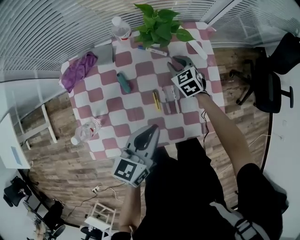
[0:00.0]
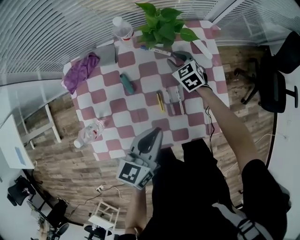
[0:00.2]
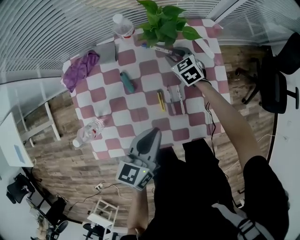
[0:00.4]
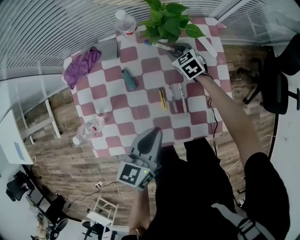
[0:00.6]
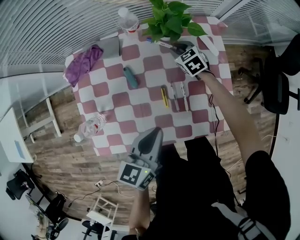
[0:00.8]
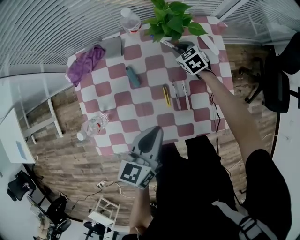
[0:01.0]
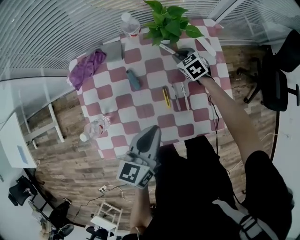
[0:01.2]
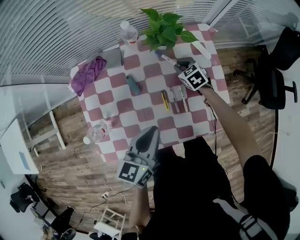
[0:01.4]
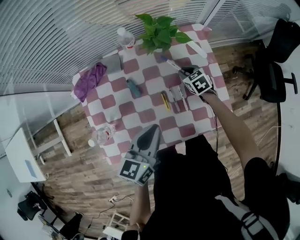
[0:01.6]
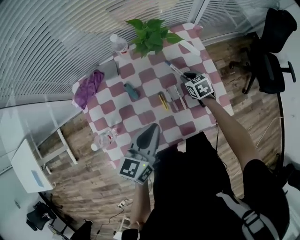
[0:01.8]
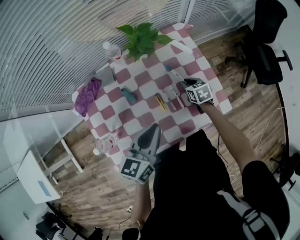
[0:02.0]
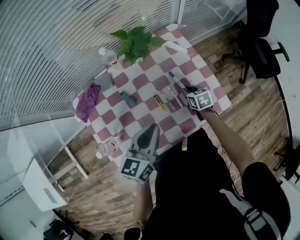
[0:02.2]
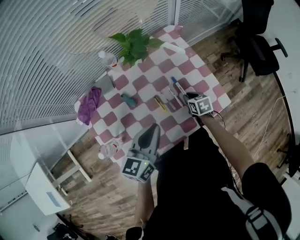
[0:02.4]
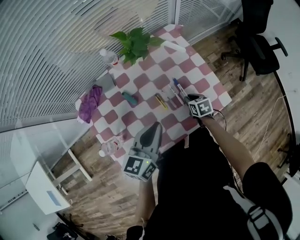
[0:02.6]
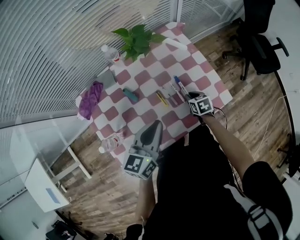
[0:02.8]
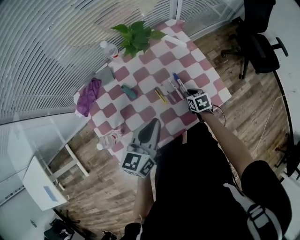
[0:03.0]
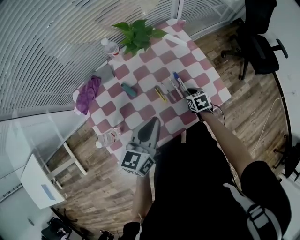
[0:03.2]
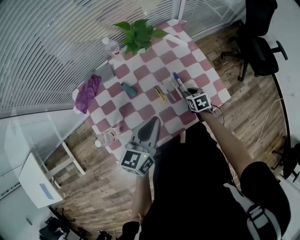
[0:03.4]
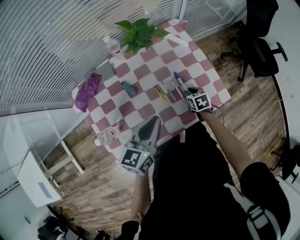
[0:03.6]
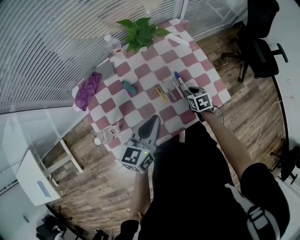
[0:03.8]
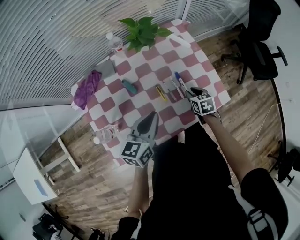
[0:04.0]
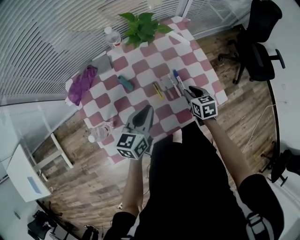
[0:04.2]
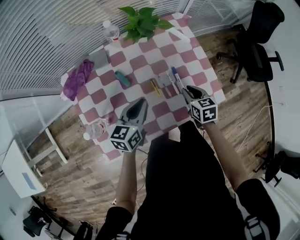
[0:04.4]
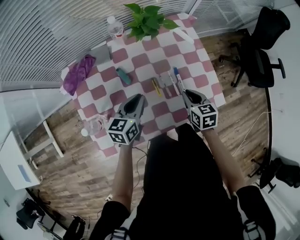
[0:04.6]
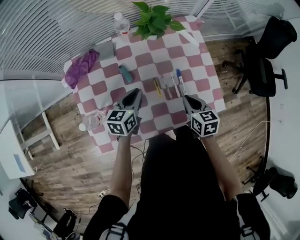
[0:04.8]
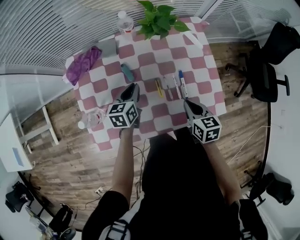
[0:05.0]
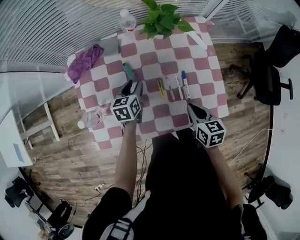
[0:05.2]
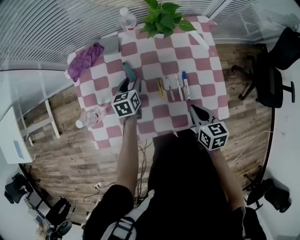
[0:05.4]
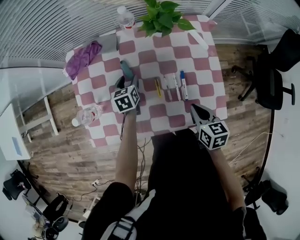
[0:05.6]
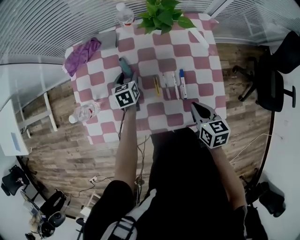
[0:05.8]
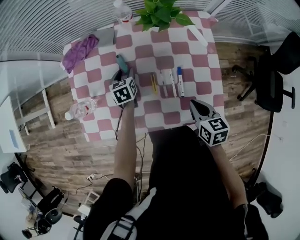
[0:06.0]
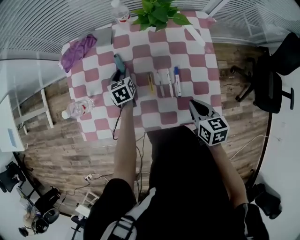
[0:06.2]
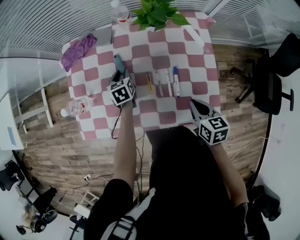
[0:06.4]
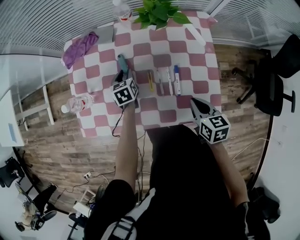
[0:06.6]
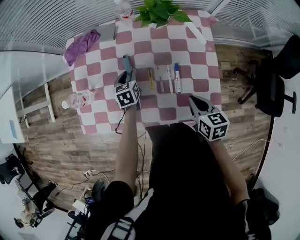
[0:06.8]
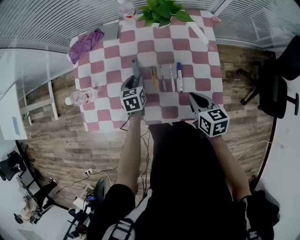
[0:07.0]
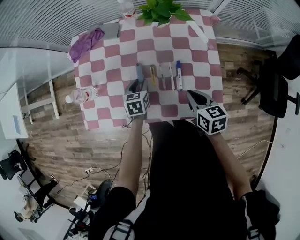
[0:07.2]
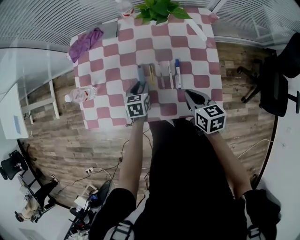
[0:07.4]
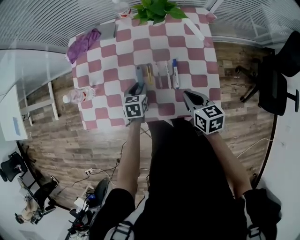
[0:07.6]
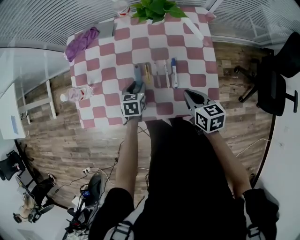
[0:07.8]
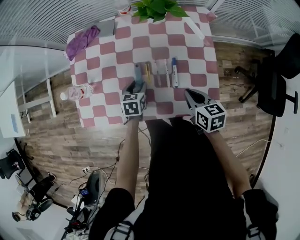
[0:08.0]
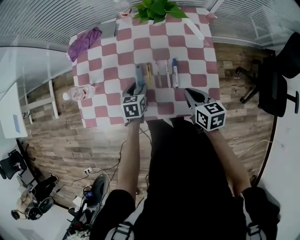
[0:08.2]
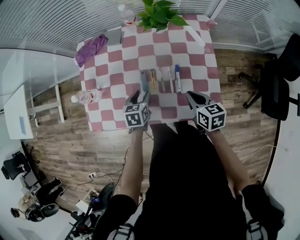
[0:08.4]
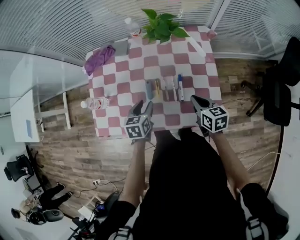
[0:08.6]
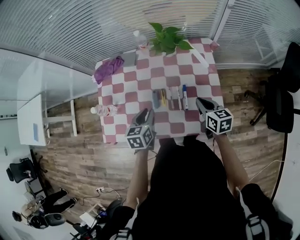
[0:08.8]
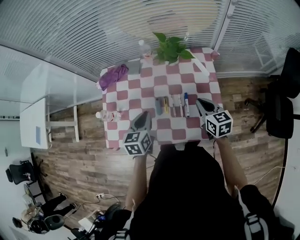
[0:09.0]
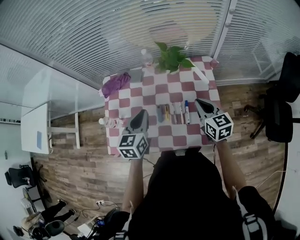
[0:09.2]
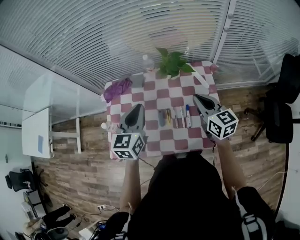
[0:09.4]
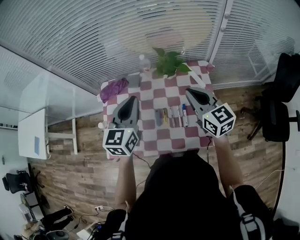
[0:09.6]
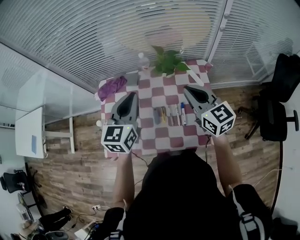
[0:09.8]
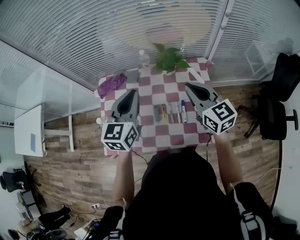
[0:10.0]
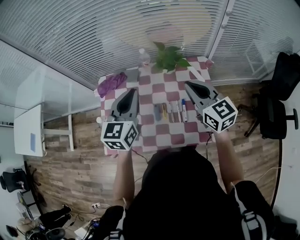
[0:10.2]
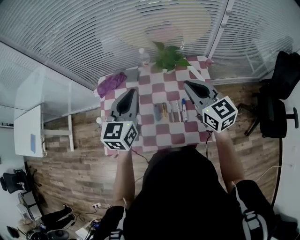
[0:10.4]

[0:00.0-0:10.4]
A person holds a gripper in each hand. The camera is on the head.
0:01.4 to 0:03.0: The right gripper heads backward and to the right, covering approximately 20 cm, and swivels roughly 40 degrees.
0:03.0 to 0:04.4: The left gripper shifts about 10 cm downward. The right gripper is displaced upward by some 10 cm.
0:04.4 to 0:06.0: The left gripper heads downward, covering some 15 cm, turns by roughly 50 degrees, and opens its fingers.
0:06.0 to 0:07.4: The left gripper moves backward, approximately 15 cm.
0:07.4 to 0:09.0: The right gripper heads upward and forward, covering about 10 cm. Meanwhile the left gripper shifts some 20 cm upward, and closes.
0:09.0 to 0:10.4: Both grippers move upward, about 20 cm. The left gripper swivels roughly 30 degrees. The right gripper changes its angle by about 20 degrees.

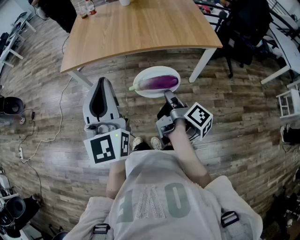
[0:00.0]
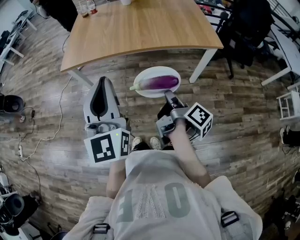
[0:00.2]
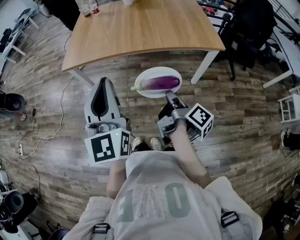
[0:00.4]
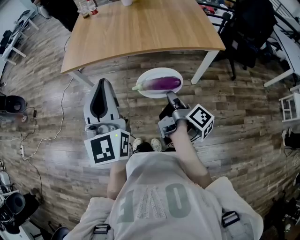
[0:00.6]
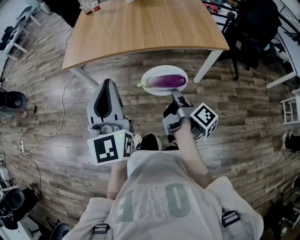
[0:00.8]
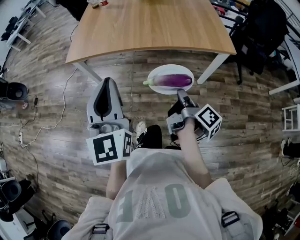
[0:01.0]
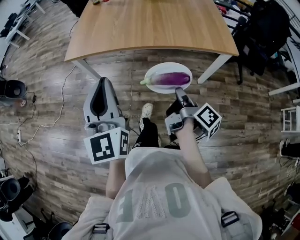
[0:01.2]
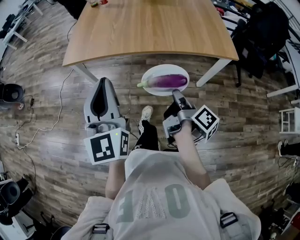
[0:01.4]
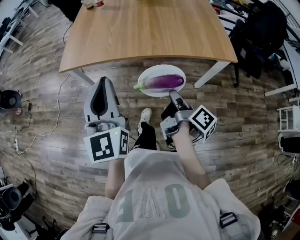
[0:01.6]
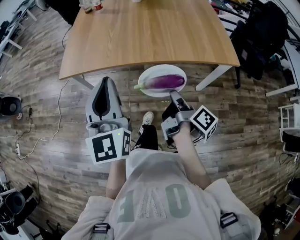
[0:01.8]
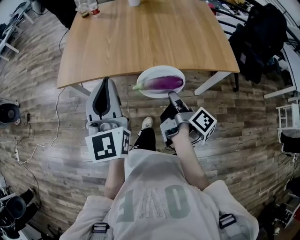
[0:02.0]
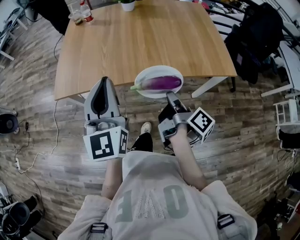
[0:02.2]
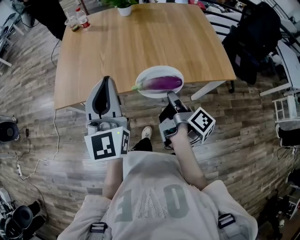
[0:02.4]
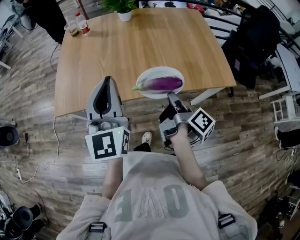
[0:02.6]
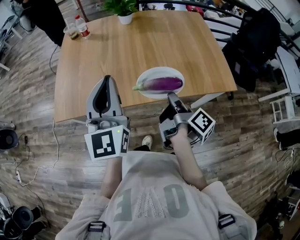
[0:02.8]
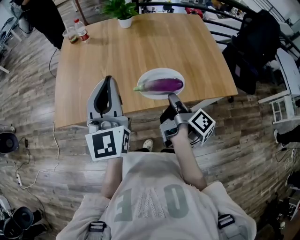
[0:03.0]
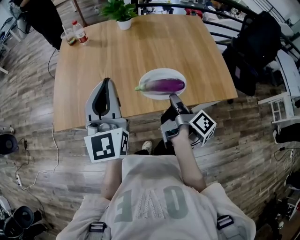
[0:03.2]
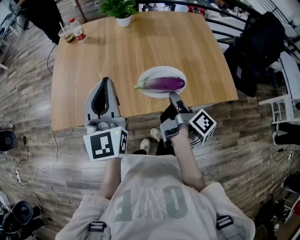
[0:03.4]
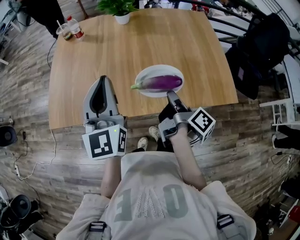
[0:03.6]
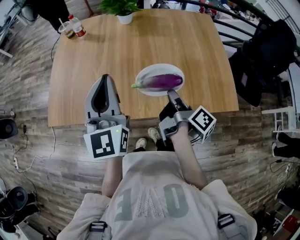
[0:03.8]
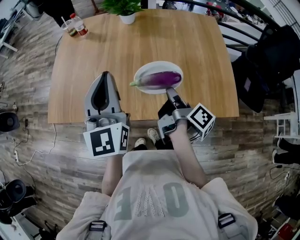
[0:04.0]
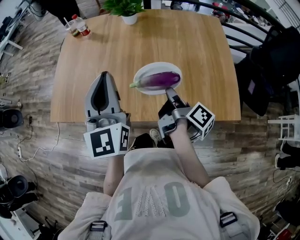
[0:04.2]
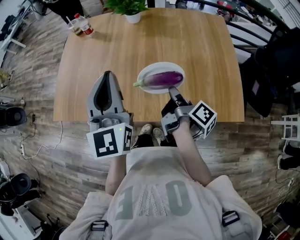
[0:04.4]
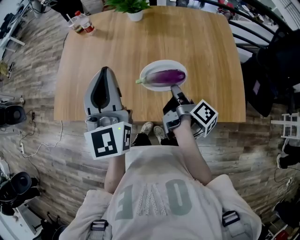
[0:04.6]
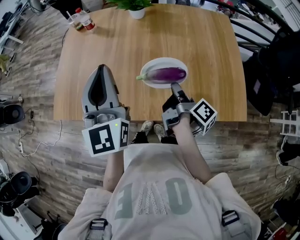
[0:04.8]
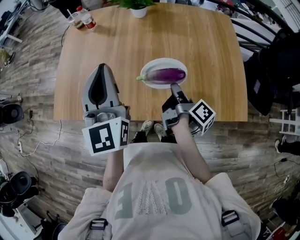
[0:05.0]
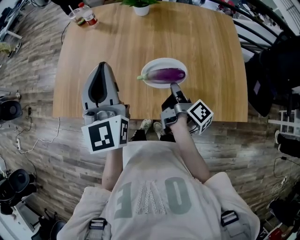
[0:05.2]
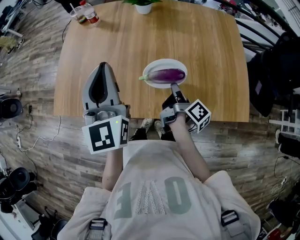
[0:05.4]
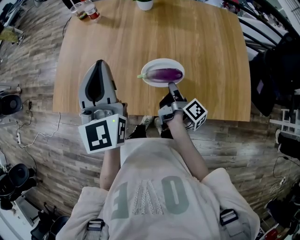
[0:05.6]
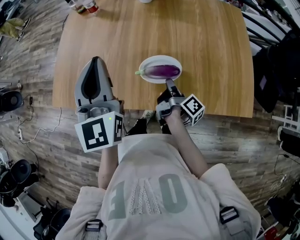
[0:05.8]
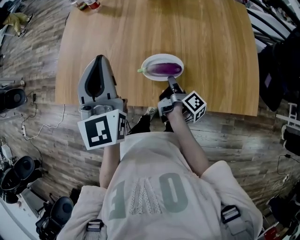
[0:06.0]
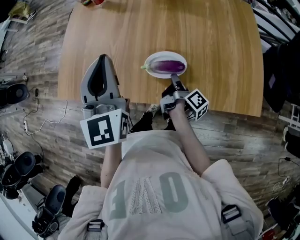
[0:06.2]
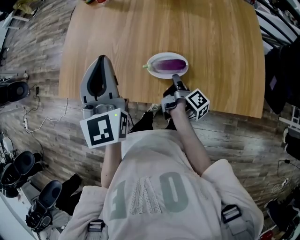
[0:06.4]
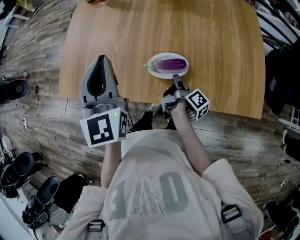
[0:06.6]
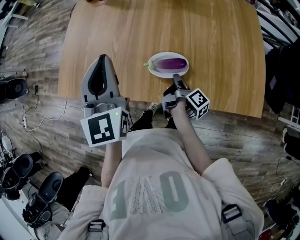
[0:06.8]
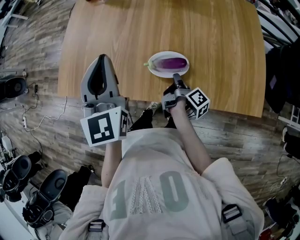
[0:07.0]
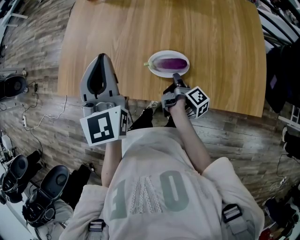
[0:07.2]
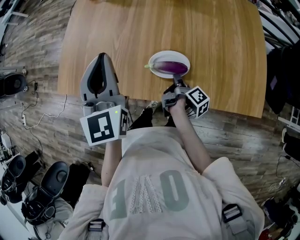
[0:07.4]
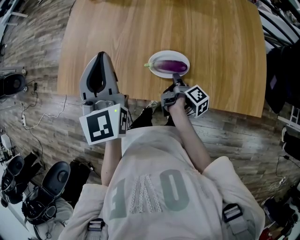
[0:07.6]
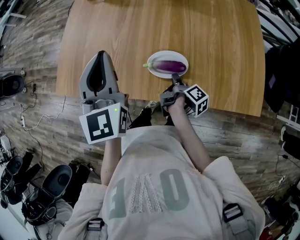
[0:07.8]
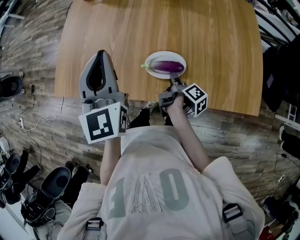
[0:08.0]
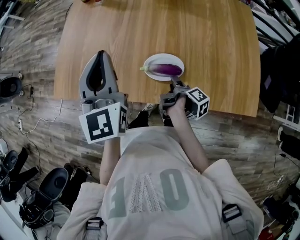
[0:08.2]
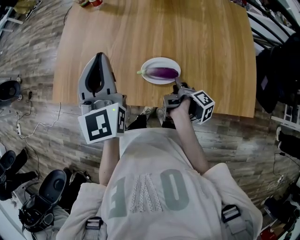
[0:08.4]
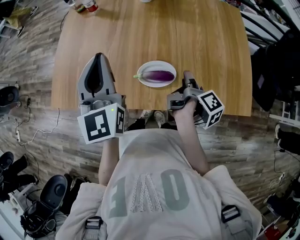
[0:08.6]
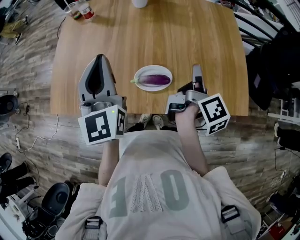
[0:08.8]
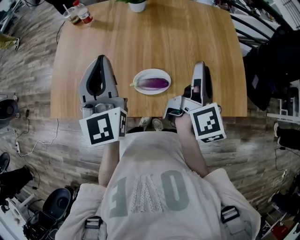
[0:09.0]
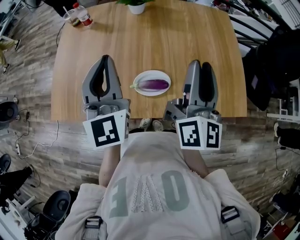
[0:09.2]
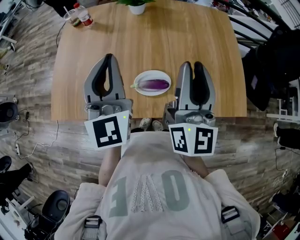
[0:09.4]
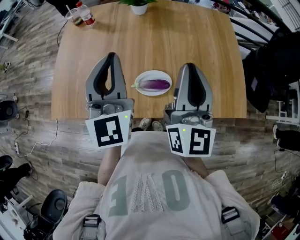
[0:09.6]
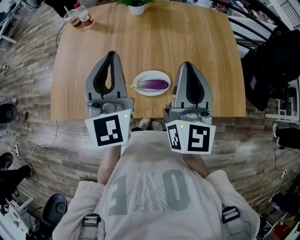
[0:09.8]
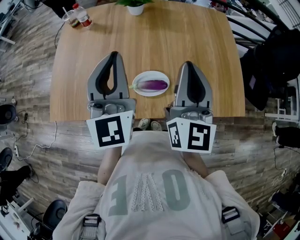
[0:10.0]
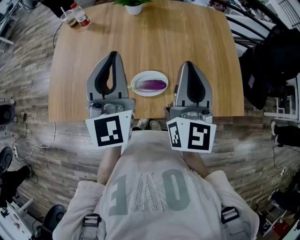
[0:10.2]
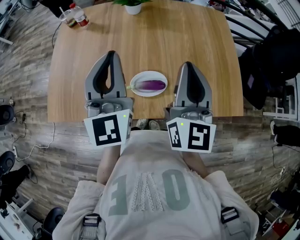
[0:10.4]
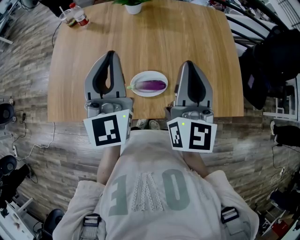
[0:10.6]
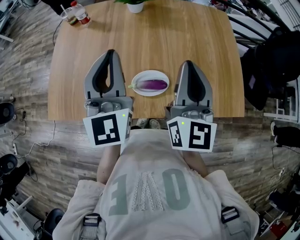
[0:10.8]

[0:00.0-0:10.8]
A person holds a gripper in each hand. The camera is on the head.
0:00.0 to 0:01.6: The left gripper changes place by roughly 10 cm.
0:01.6 to 0:03.0: The left gripper moves some 25 cm.
0:03.0 to 0:04.6: The left gripper ends up roughly 10 cm from where it was.
0:04.6 to 0:06.2: The left gripper changes place by some 10 cm.
0:07.8 to 0:09.2: The left gripper ends up some 5 cm from where it was.

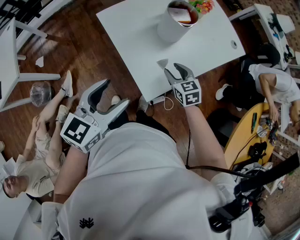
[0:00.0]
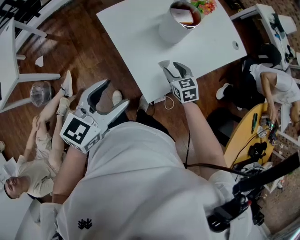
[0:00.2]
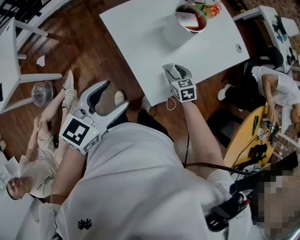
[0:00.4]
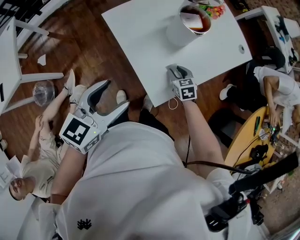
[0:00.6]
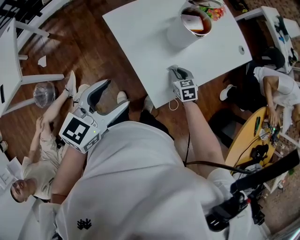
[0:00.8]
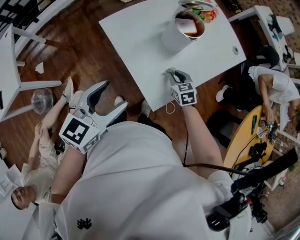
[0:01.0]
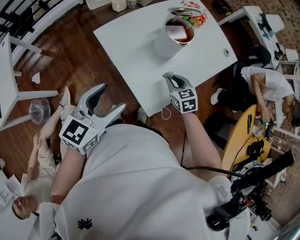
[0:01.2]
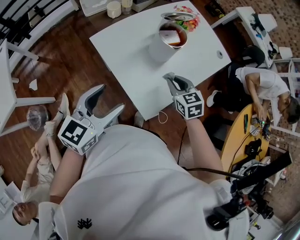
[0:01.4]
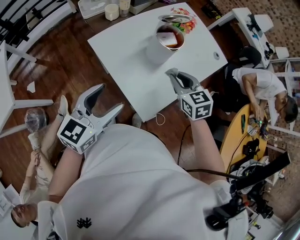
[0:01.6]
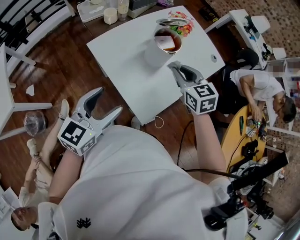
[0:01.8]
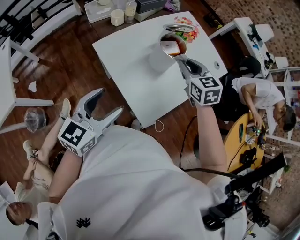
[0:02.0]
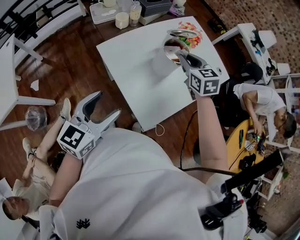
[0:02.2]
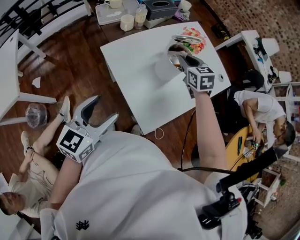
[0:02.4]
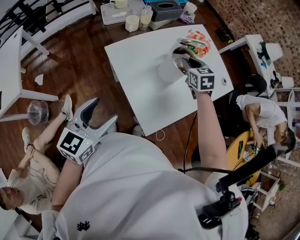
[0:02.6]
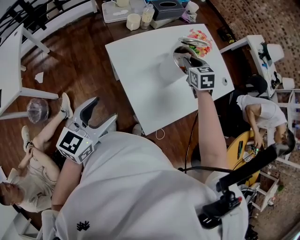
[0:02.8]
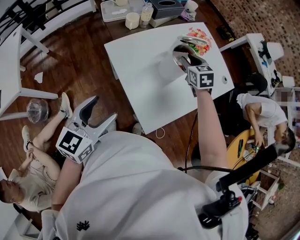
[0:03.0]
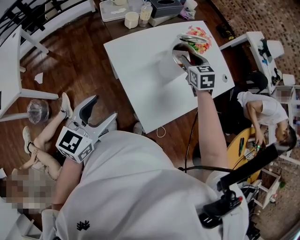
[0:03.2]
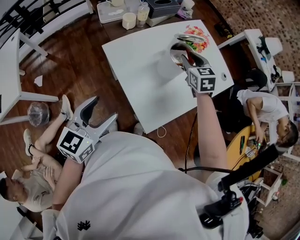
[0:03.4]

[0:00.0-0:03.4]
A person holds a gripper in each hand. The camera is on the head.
0:00.0 to 0:01.6: The left gripper shifts about 5 cm forward, while the right gripper goes approximately 15 cm upward, and closes up.
0:01.6 to 0:03.4: The left gripper heads to the left, covering about 5 cm, while the right gripper travels forward by approximately 15 cm.
